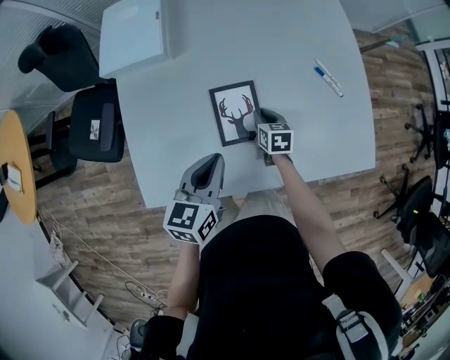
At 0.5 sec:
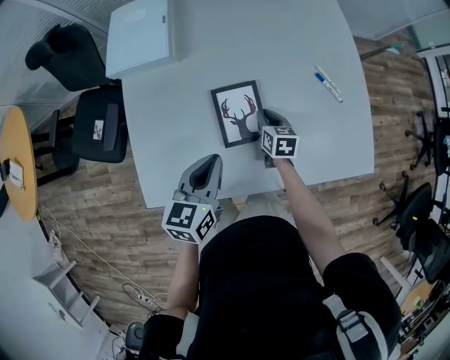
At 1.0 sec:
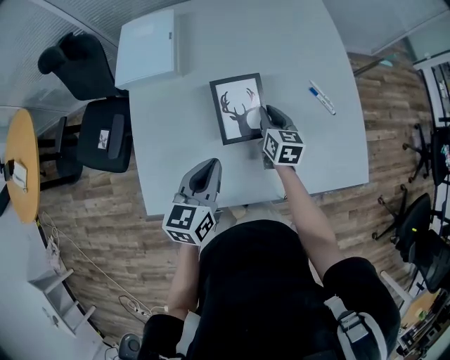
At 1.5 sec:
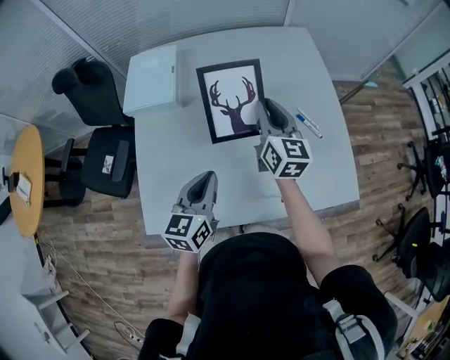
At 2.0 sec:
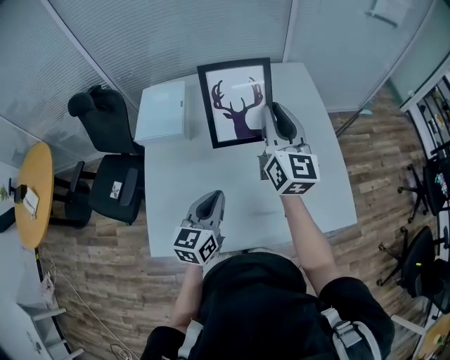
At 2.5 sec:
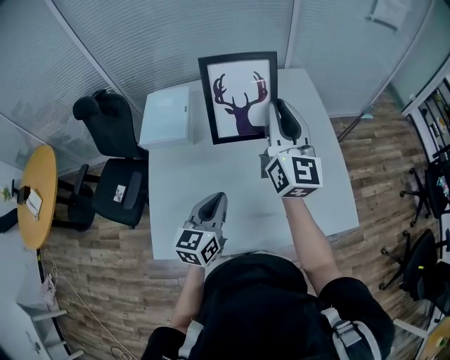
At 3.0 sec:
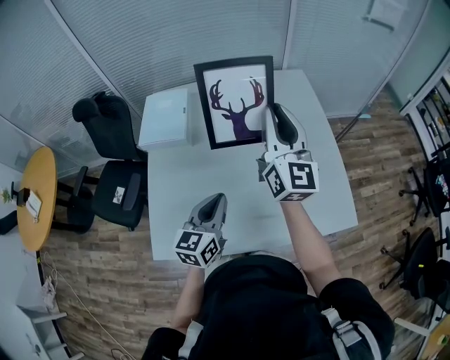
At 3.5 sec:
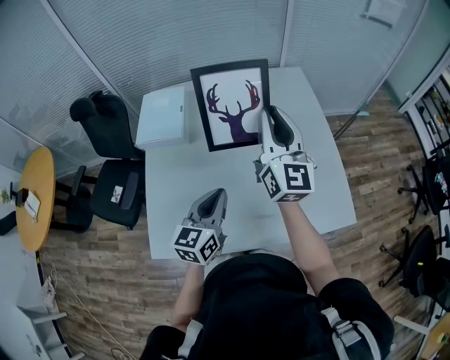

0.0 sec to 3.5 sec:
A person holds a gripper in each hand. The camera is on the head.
0.0 sec to 2.0 sec: The left gripper is displaced upward by approximately 10 cm. The right gripper is displaced upward by some 50 cm, and tips its fingers upward by approximately 60 degrees.
2.0 sec to 3.5 sec: The grippers move only a little.

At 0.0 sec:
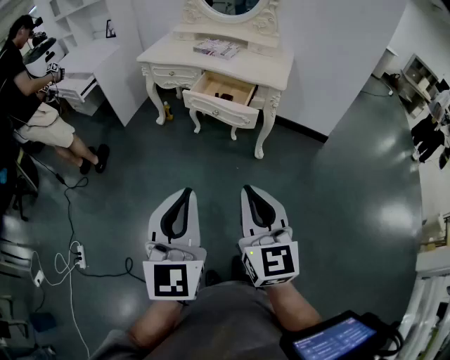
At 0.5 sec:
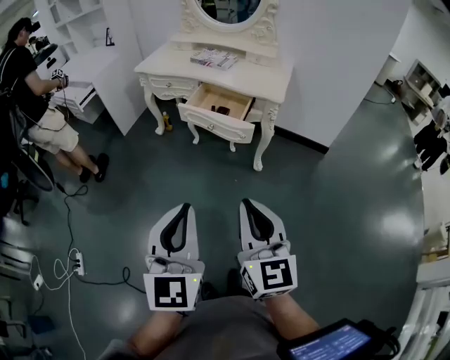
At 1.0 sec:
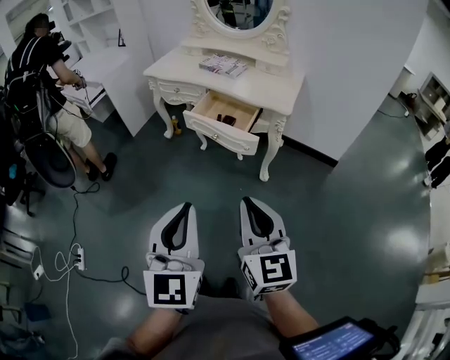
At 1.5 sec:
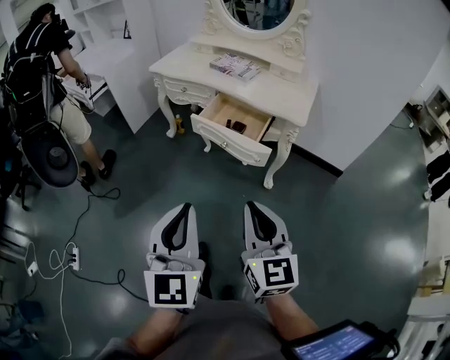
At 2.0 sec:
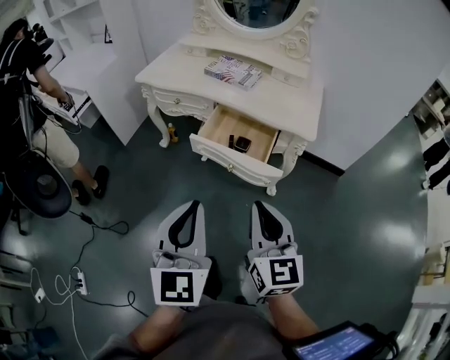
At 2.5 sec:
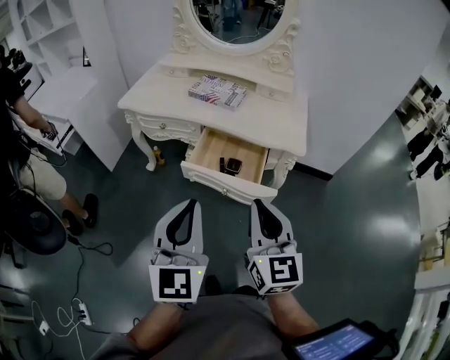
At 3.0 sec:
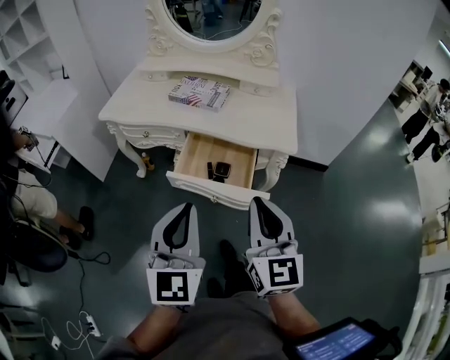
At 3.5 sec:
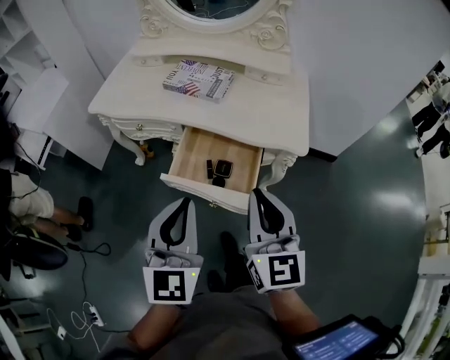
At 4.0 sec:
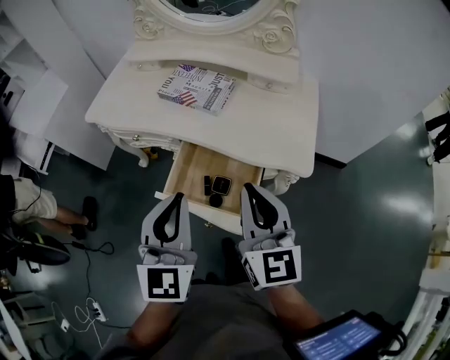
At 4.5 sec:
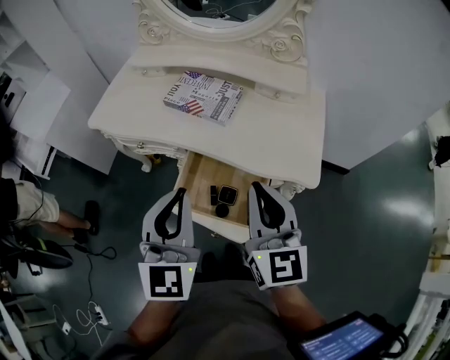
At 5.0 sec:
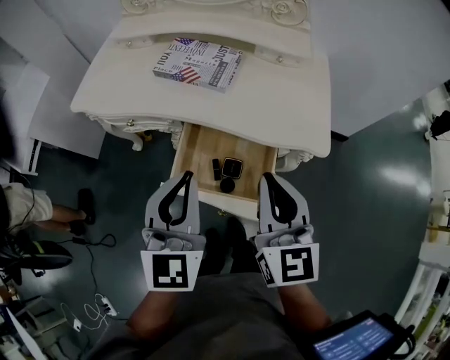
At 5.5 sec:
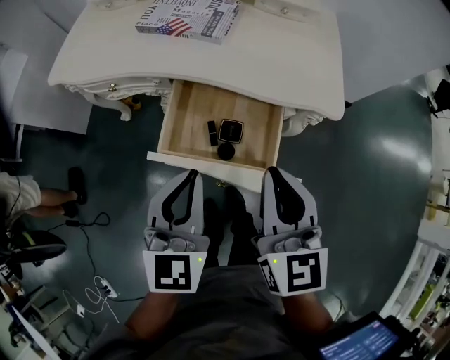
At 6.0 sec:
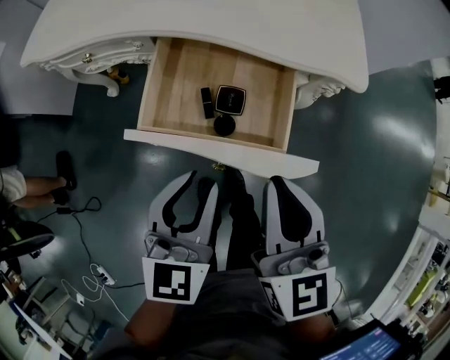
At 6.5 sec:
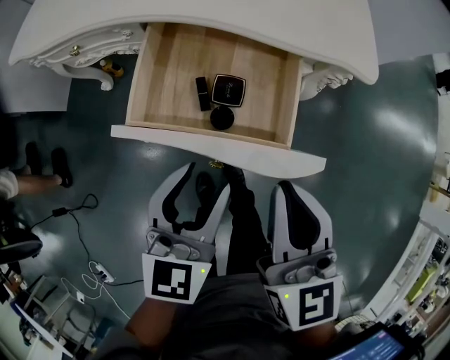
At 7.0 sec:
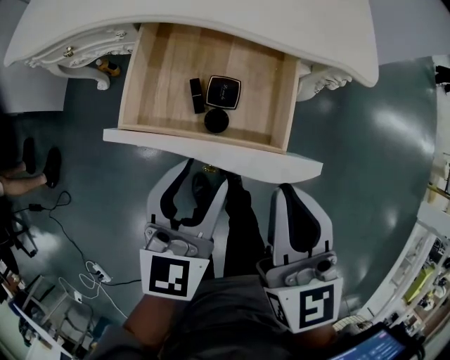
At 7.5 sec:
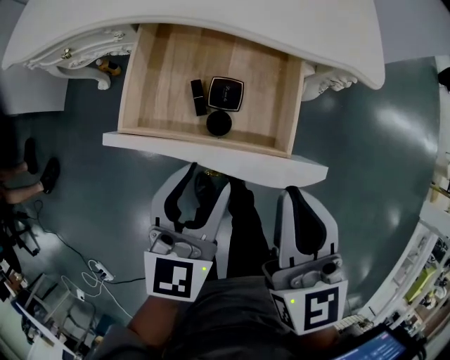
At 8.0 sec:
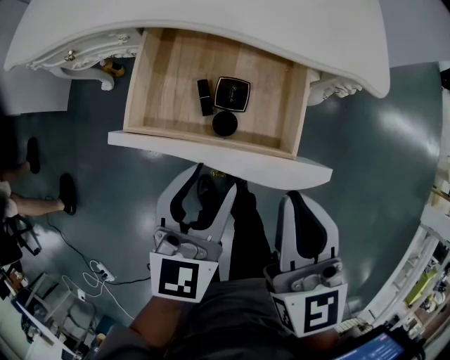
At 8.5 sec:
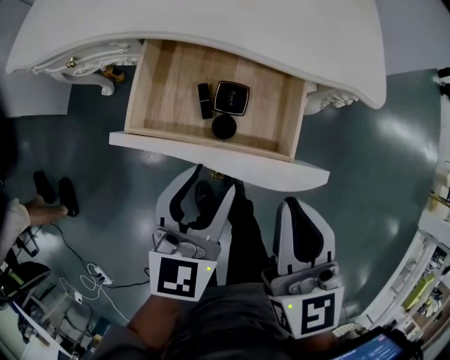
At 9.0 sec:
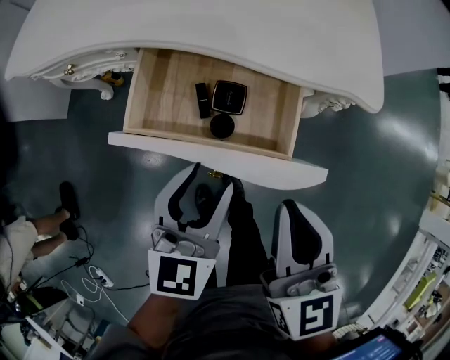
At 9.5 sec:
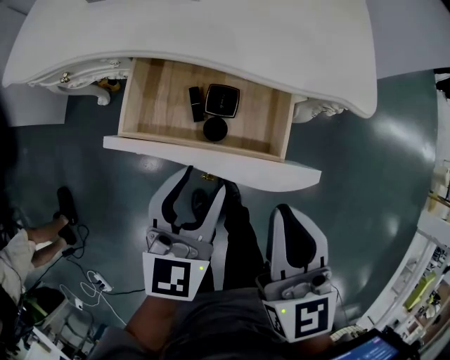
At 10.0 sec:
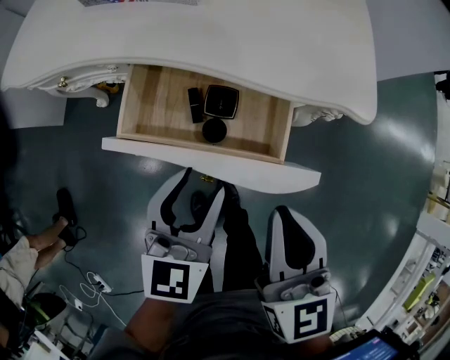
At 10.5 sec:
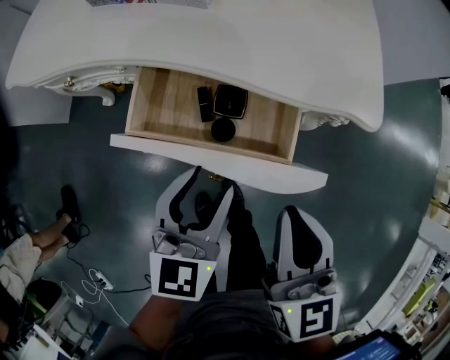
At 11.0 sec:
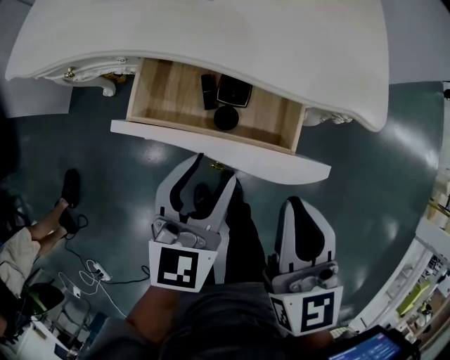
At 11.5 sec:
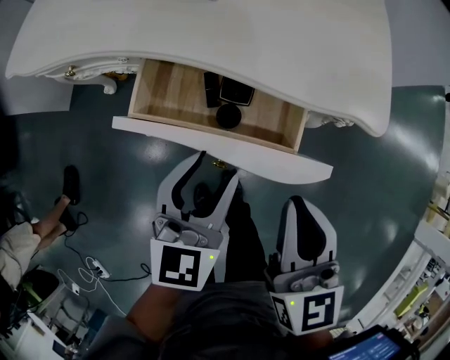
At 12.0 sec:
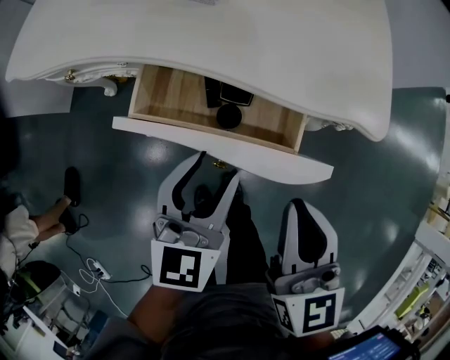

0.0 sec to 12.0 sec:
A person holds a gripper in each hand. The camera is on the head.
0.0 sec to 2.0 sec: Both grippers travel together forward, roughly 30 cm.
2.0 sec to 4.0 sec: The two grippers go approximately 30 cm forward.
4.0 sec to 6.0 sec: The right gripper goes about 15 cm downward and backward. The left gripper heads downward, covering some 20 cm, changes its angle by approximately 30 degrees, and opens its fingers.
6.0 sec to 8.0 sec: The left gripper travels downward by roughly 5 cm, and opens its fingers.
8.0 sec to 10.0 sec: The left gripper goes some 5 cm forward.
10.0 sec to 12.0 sec: The grippers make only small movements.

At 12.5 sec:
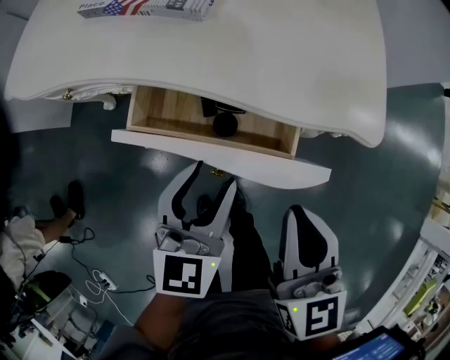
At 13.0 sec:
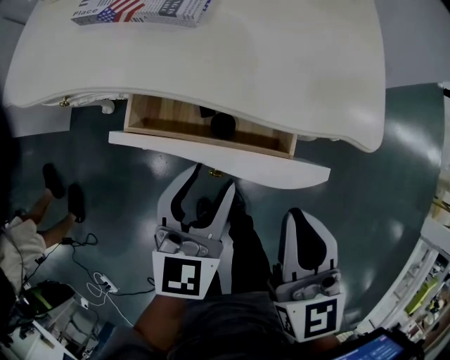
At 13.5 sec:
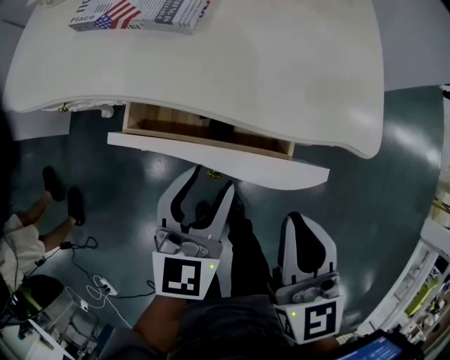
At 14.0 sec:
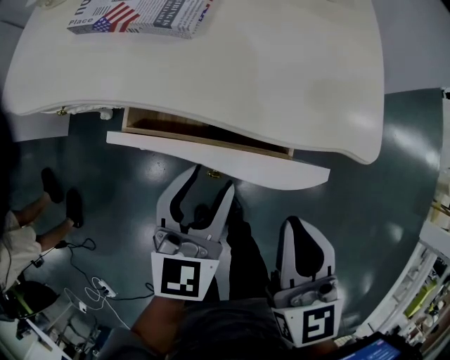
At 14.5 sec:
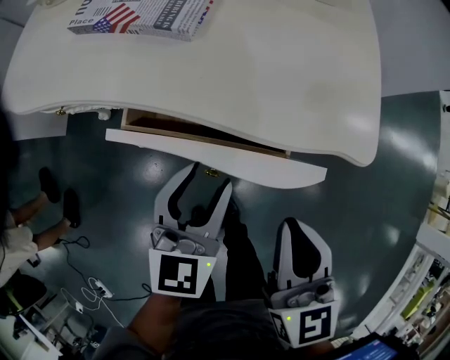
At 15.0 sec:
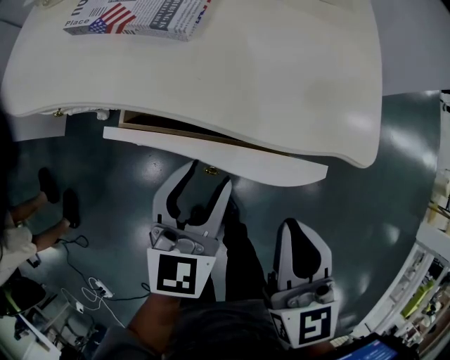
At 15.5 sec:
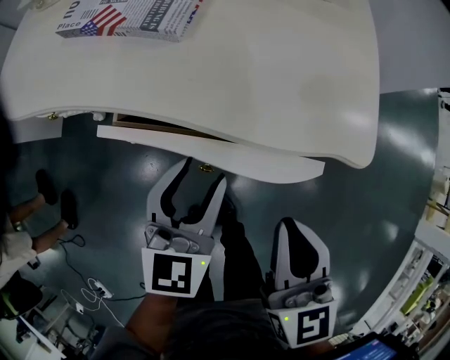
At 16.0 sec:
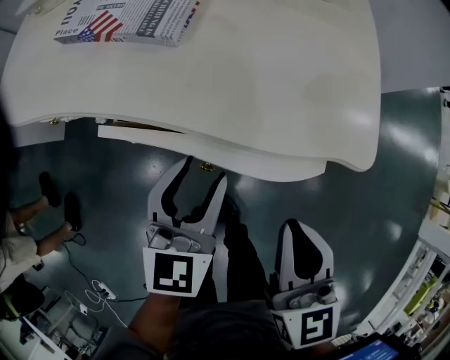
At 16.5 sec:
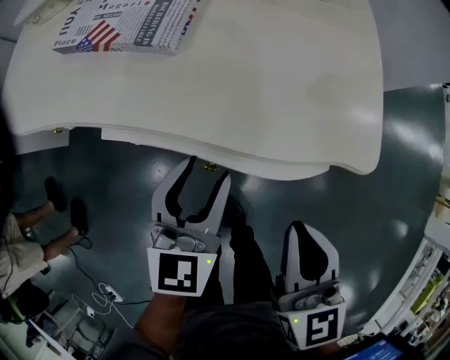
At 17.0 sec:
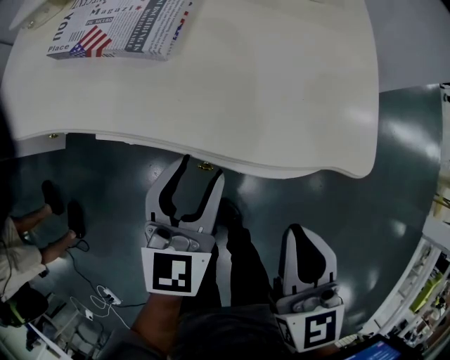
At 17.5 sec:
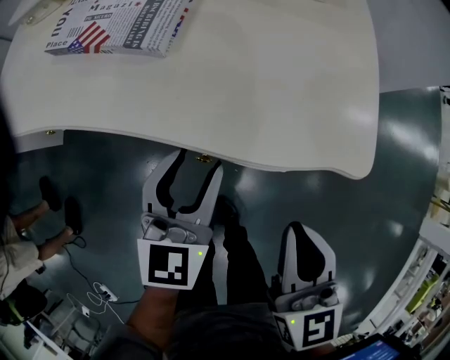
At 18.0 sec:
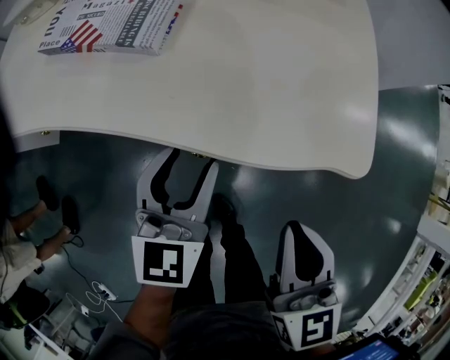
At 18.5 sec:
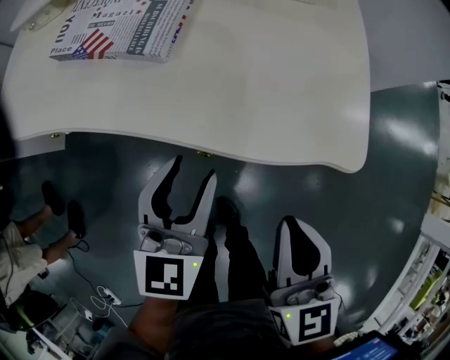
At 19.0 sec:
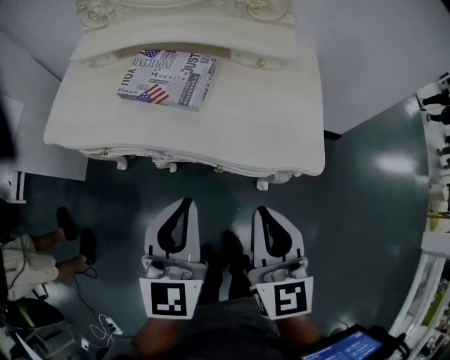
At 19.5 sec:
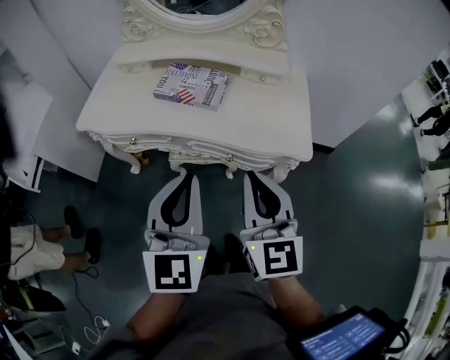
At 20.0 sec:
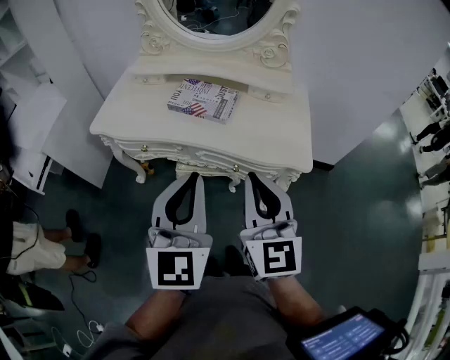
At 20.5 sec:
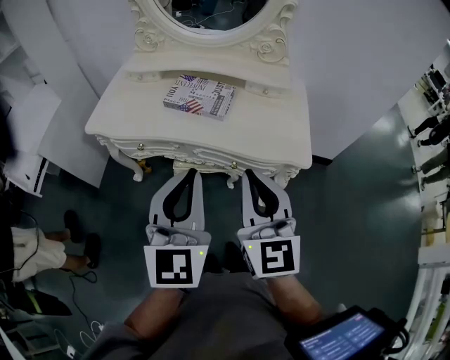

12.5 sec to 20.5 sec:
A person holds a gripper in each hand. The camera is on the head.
12.5 sec to 14.5 sec: There are only small adjustments of the grippers.
14.5 sec to 16.5 sec: There are only small adjustments of the grippers.
16.5 sec to 18.5 sec: The grippers stay close to where they were, moving slightly.
18.5 sec to 20.5 sec: The right gripper goes roughly 30 cm upward and to the left, and swivels about 30 degrees; the left gripper travels upward and backward by approximately 35 cm, rotates about 20 degrees, and closes up.

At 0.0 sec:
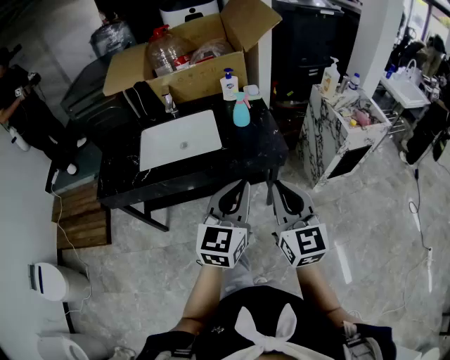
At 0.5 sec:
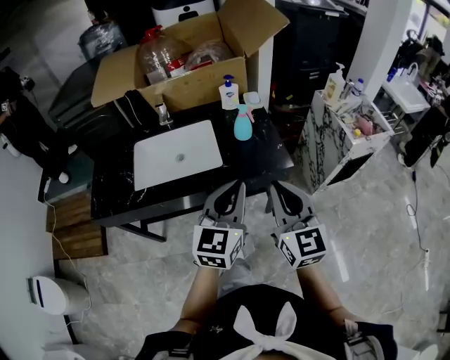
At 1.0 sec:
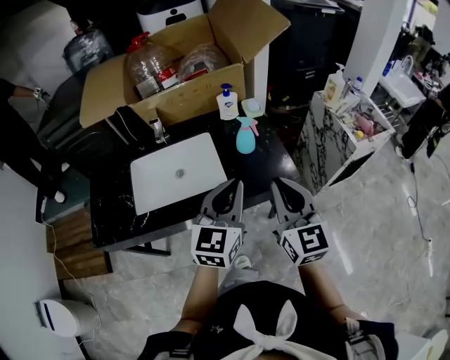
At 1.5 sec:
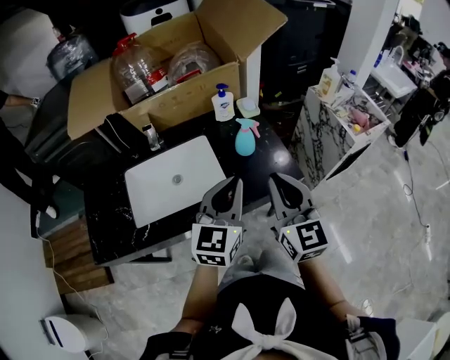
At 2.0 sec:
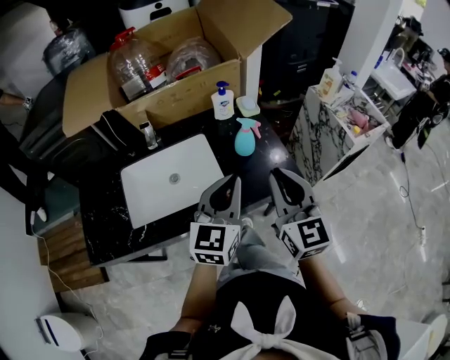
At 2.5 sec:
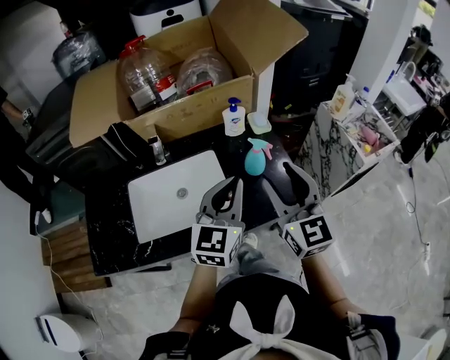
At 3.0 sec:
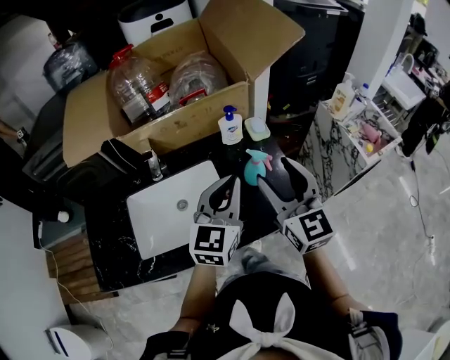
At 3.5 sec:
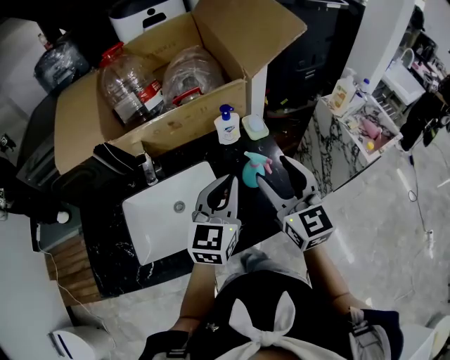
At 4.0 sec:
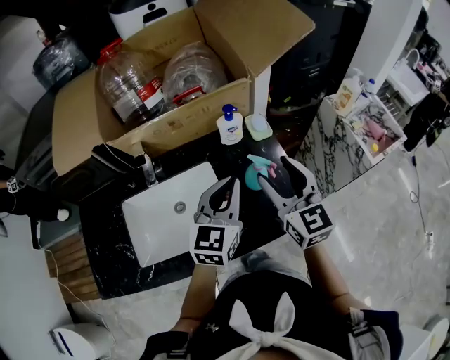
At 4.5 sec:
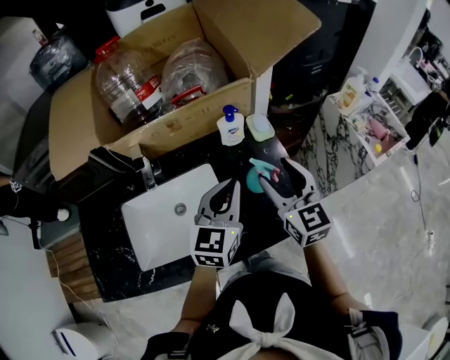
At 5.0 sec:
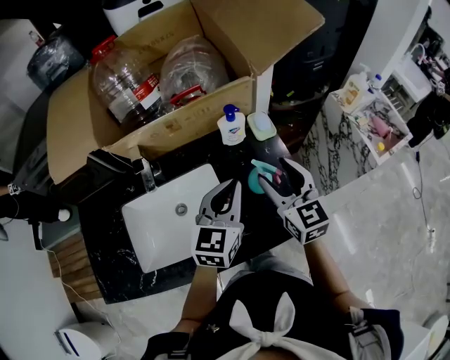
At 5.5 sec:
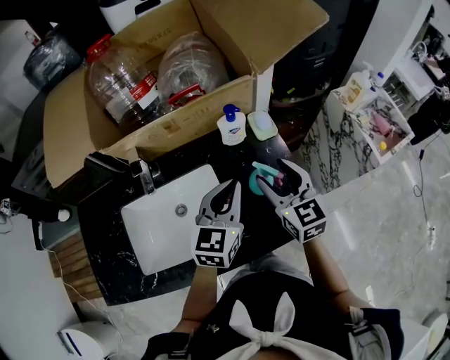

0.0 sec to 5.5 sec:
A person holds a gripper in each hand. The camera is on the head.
0.0 sec to 2.0 sec: The two grippers go about 25 cm forward and to the left.
2.0 sec to 3.5 sec: The grippers both shift forward by roughly 15 cm. The right gripper opens up.
3.5 sec to 5.5 sec: The left gripper shifts about 10 cm downward and forward. Meanwhile the right gripper is displaced downward and forward by approximately 10 cm.
